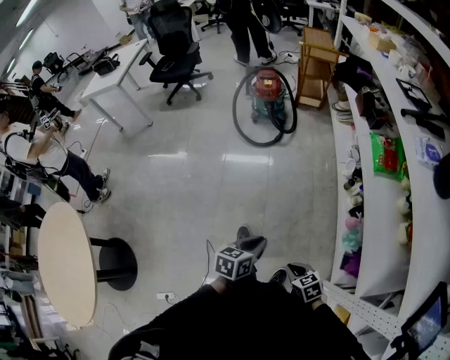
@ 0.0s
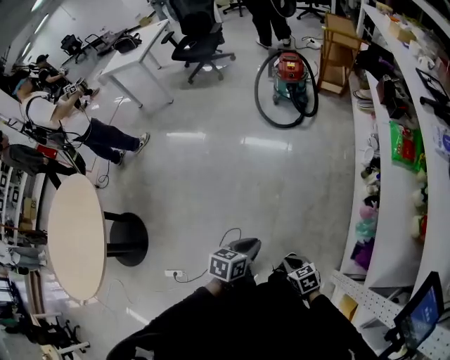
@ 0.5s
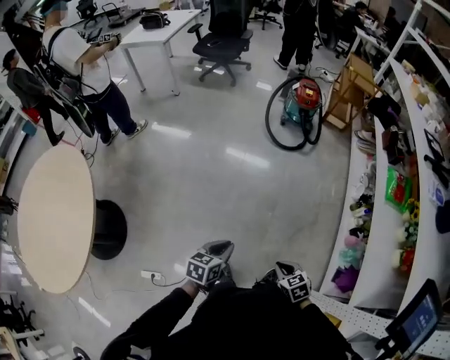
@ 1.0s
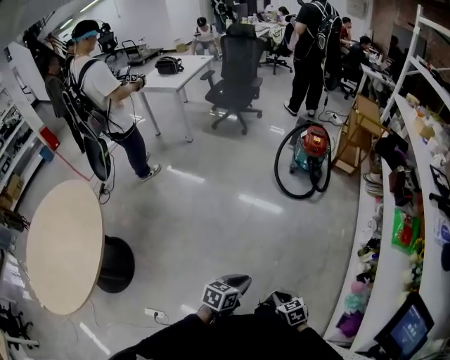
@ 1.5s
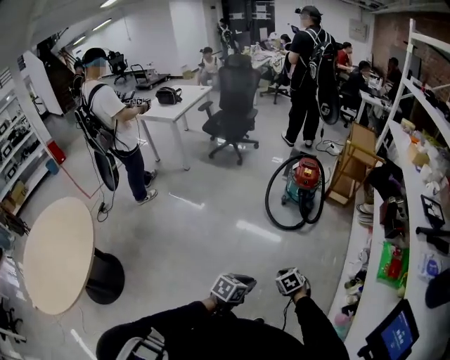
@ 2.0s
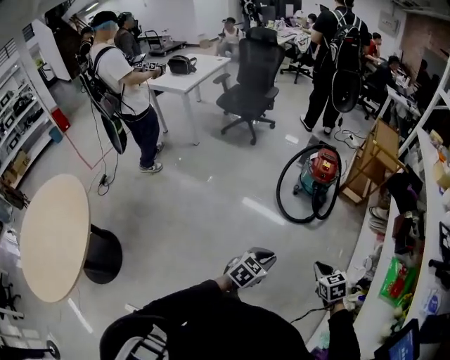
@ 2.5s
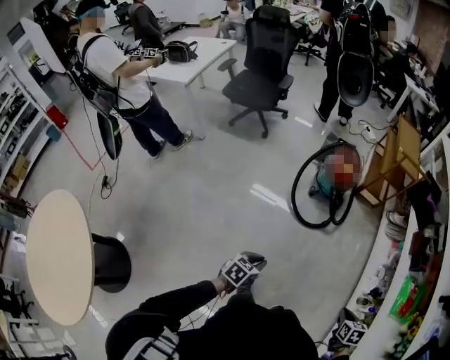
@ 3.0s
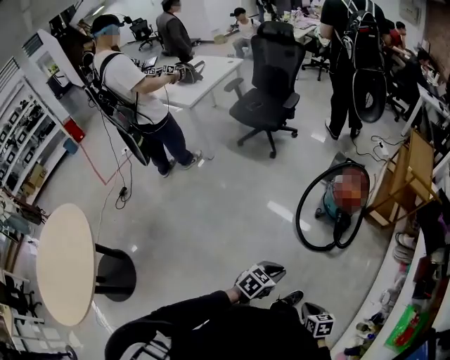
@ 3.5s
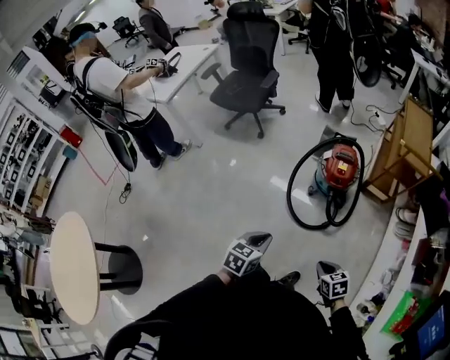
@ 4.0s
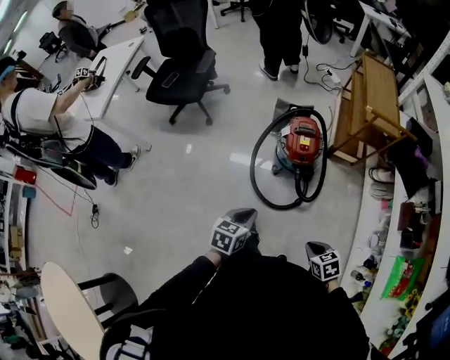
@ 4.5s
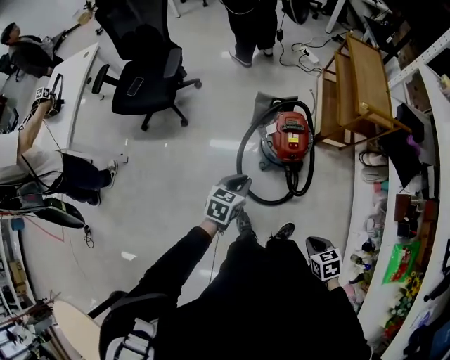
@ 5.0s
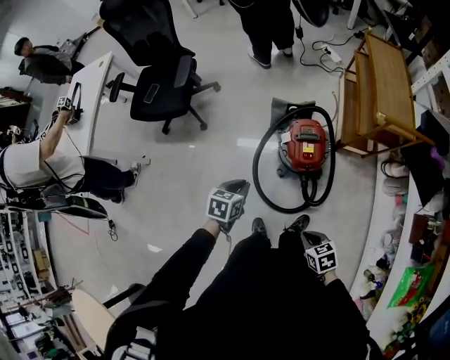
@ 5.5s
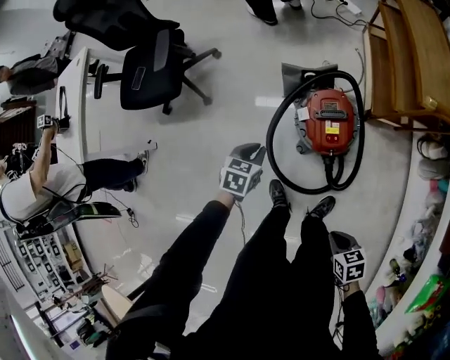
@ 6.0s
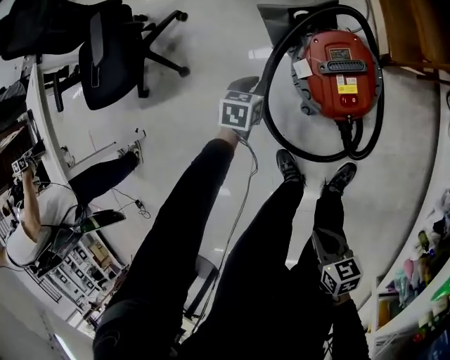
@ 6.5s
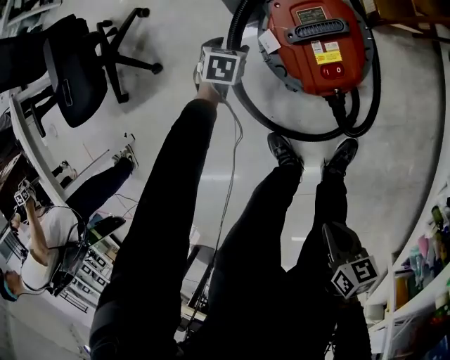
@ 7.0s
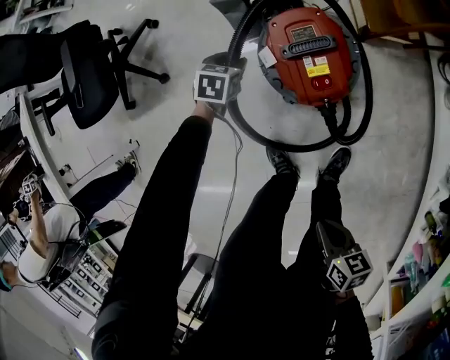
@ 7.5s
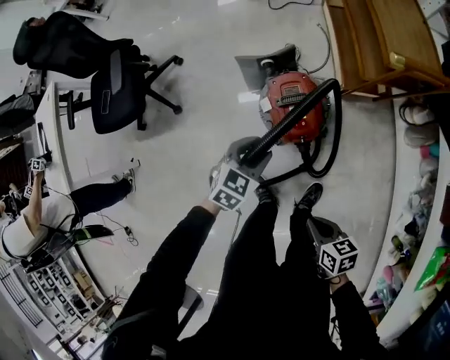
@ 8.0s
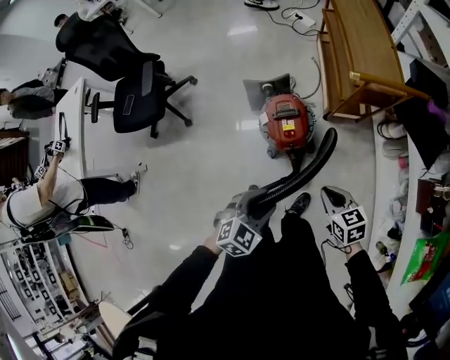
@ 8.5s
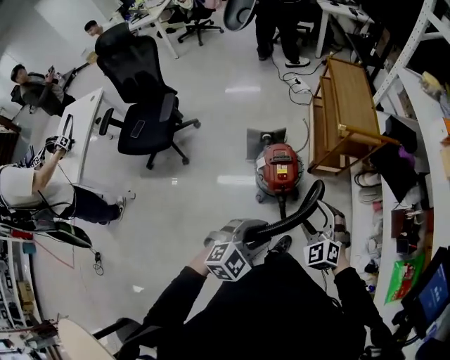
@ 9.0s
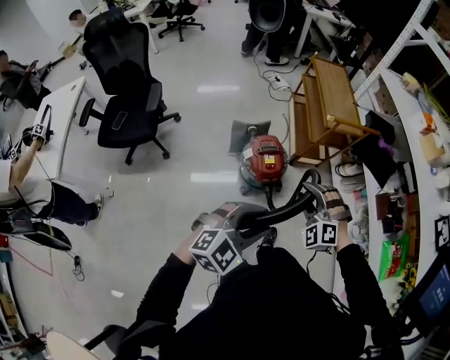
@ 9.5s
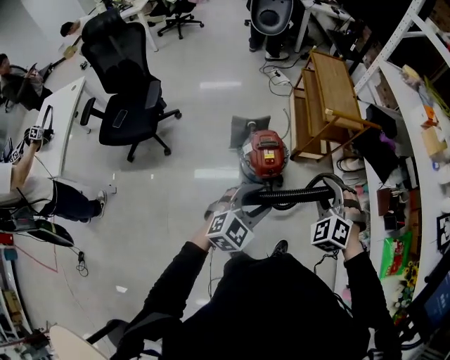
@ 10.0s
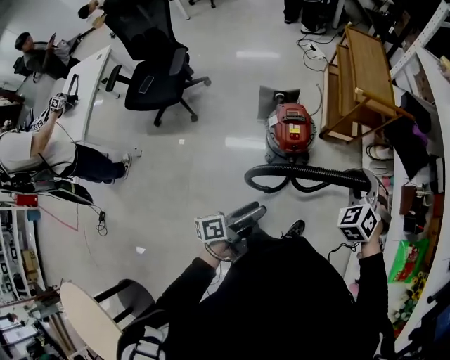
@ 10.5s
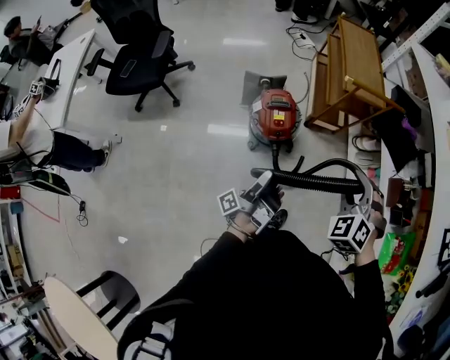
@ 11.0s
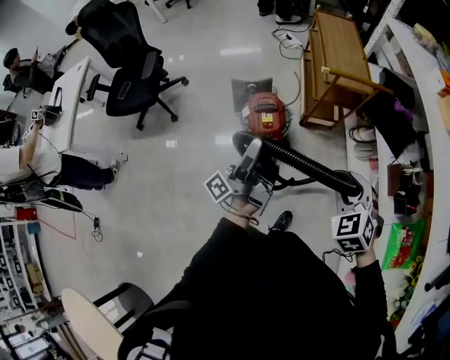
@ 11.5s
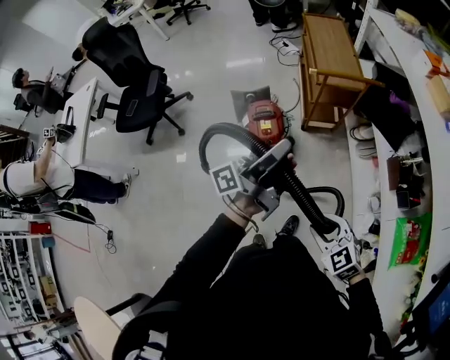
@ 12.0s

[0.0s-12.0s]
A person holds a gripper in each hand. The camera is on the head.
0.0s to 2.0s: The left gripper is displaced forward by approximately 15 cm, and reaches approximately 30 cm to the left, then returns; the right gripper travels forward by some 30 cm, and changes its angle by some 30 degrees.
2.0s to 4.0s: The pair of grippers is taken about 50 cm. The right gripper changes its angle by about 20 degrees.
4.0s to 6.0s: The right gripper heads forward and downward, covering about 35 cm, and changes its angle by roughly 30 degrees, while the left gripper goes some 70 cm forward and downward, and rotates some 20 degrees.
6.0s to 8.0s: The left gripper travels to the right by some 15 cm, moves approximately 35 cm downward and comes back, swivels roughly 30 degrees, and opens up, while the right gripper moves some 10 cm downward and comes back, and turns by approximately 20 degrees.
8.0s to 10.0s: Both grippers move upward, approximately 35 cm. The left gripper swivels about 30 degrees; the right gripper rolls counterclockwise, seen from behind, by approximately 90 degrees, and opens its fingers.
10.0s to 12.0s: The right gripper goes about 25 cm to the right and backward, and changes its angle by about 50 degrees, while the left gripper travels to the right, upward and forward by approximately 25 cm, rotates around the line of its fingers by approximately 90 degrees, counterclockwise from behind, and opens, then closes again.

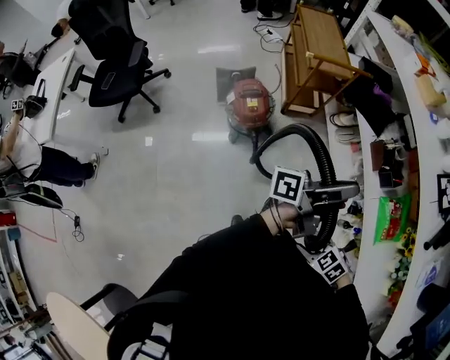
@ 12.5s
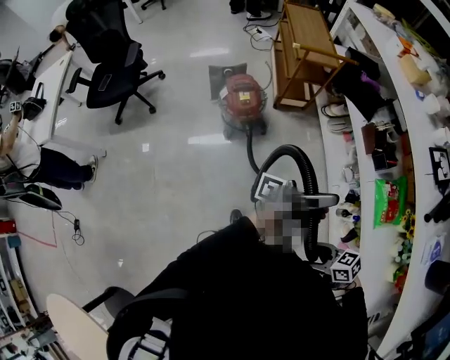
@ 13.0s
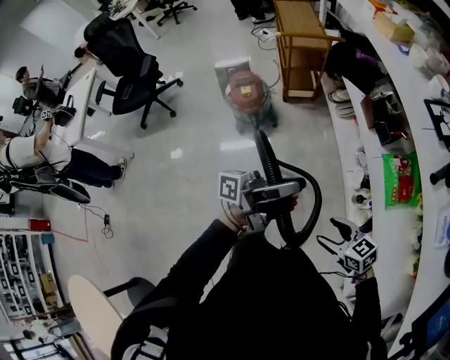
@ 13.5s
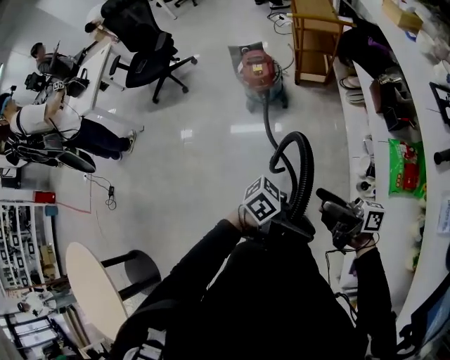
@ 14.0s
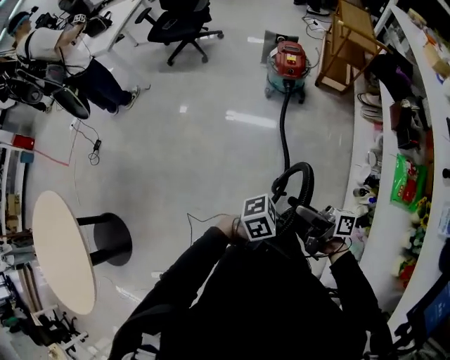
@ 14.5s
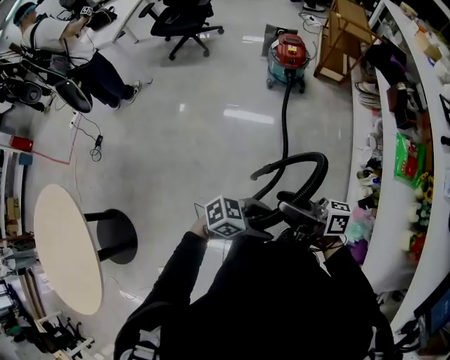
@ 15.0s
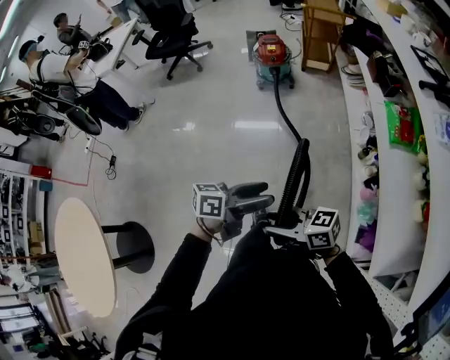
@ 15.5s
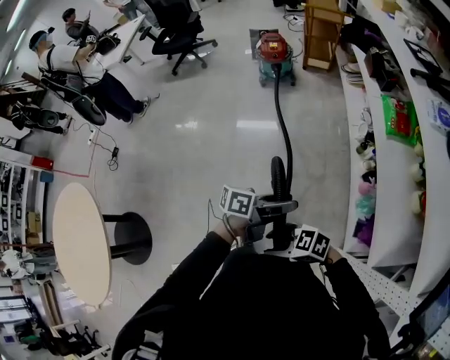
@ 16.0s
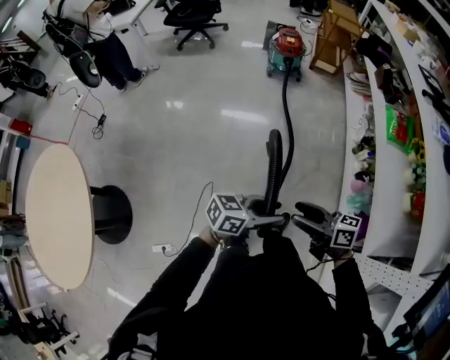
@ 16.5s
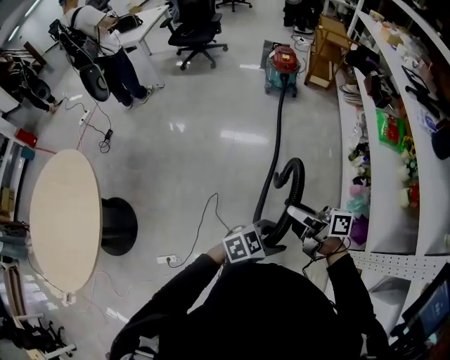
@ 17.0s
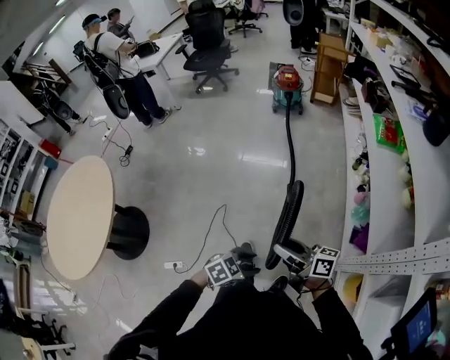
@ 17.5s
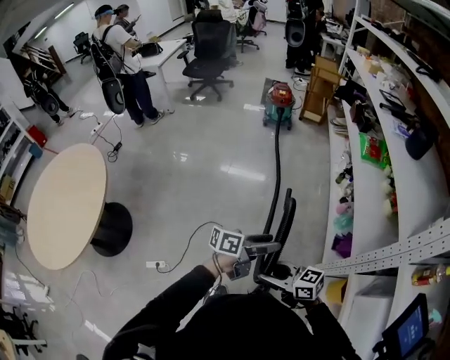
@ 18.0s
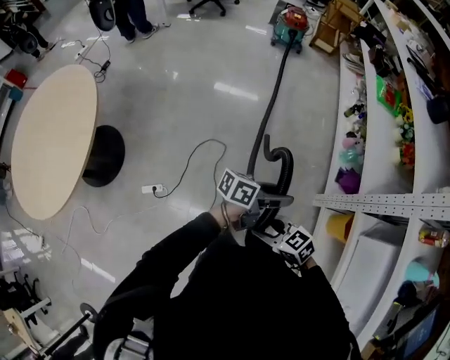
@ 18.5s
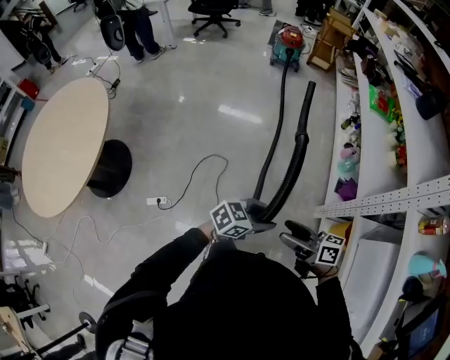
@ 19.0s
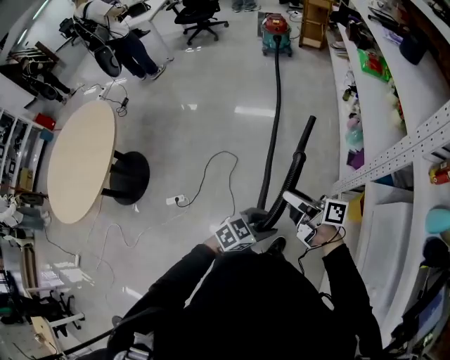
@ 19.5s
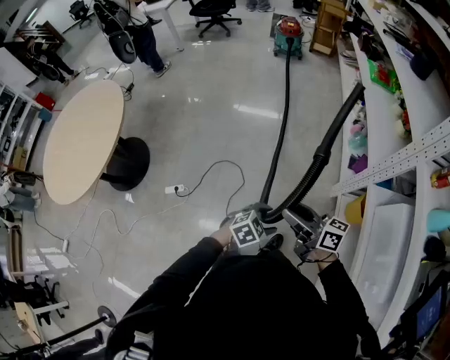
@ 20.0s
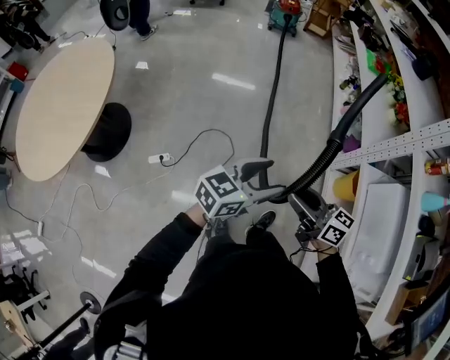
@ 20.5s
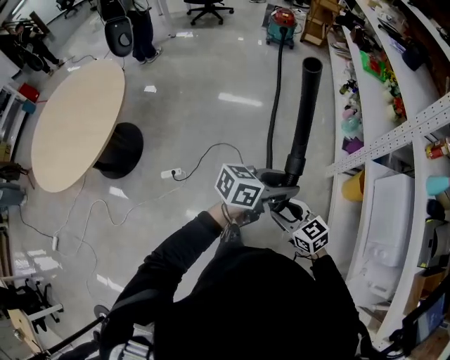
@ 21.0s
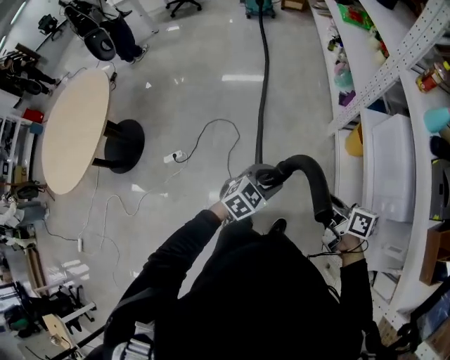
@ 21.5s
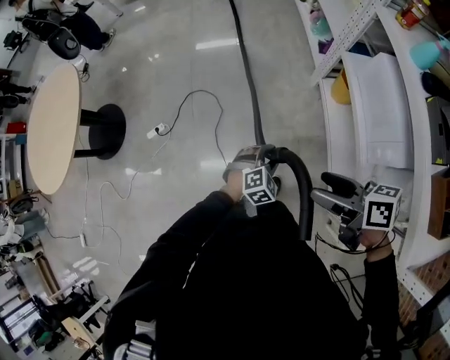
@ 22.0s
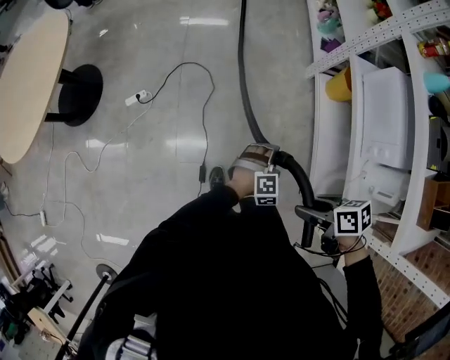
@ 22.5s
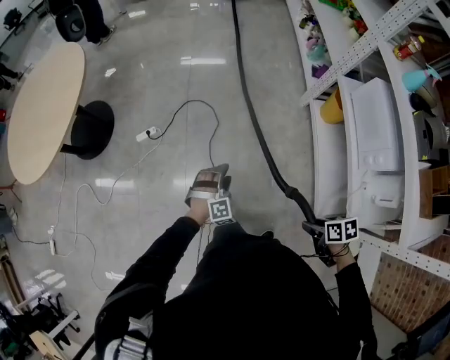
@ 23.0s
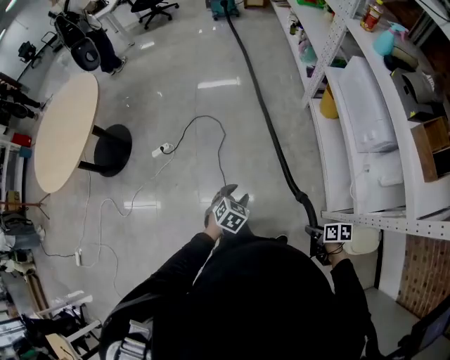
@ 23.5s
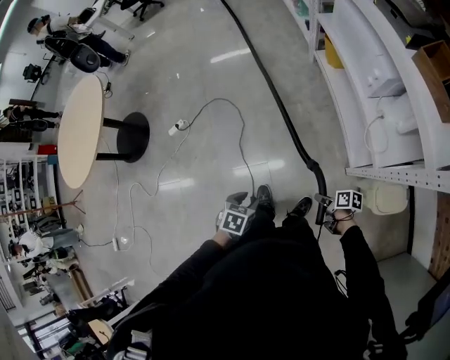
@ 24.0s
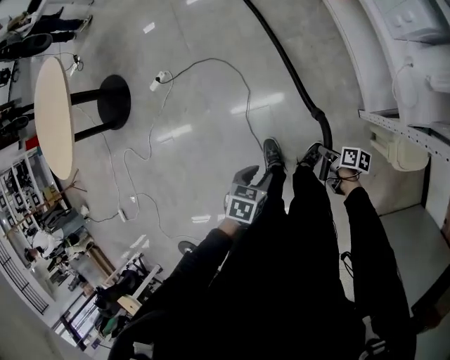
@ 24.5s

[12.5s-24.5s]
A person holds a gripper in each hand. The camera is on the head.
12.5s to 14.5s: The right gripper changes place by approximately 30 cm, tips its fingers upward by about 70 degrees, and opens. Meanwhile the left gripper moves some 70 cm, and angles its fingers downward, by roughly 40 degrees.
14.5s to 16.5s: The right gripper swings up and down, about 10 cm each way, with 2 reversals, and turns by roughly 30 degrees. Meanwhile the left gripper moves roughly 30 cm, and changes its angle by some 50 degrees.
16.5s to 18.5s: The right gripper changes place by about 50 cm, and changes its angle by about 40 degrees. Meanwhile the left gripper moves up and down over roughly 10 cm, changing direction 2 times, and turns by roughly 20 degrees.
18.5s to 20.5s: The right gripper ends up some 20 cm from where it was, changes its angle by about 40 degrees, and opens, then closes again, while the left gripper moves some 30 cm, and turns by some 40 degrees.
20.5s to 22.5s: The right gripper moves up and down over about 10 cm, changing direction 2 times, and points its fingers about 40 degrees further downward, while the left gripper ends up approximately 50 cm from where it was, and tips its fingers downward by approximately 40 degrees.
22.5s to 24.5s: The left gripper moves approximately 35 cm, and rotates around the line of its fingers by some 60 degrees, counterclockwise from behind, while the right gripper goes approximately 35 cm downward, and turns by approximately 40 degrees.

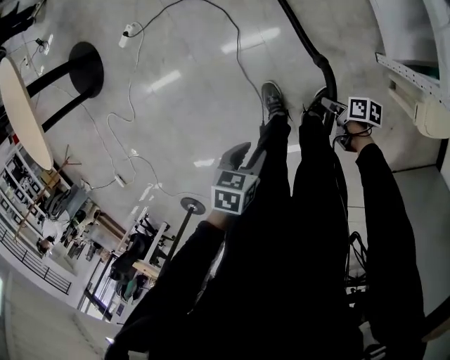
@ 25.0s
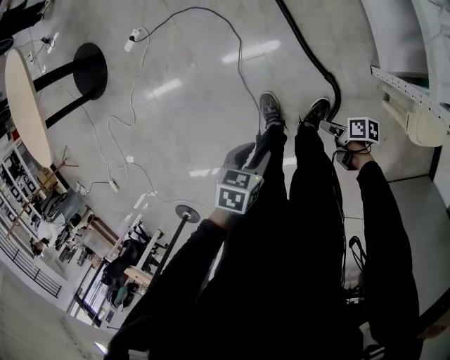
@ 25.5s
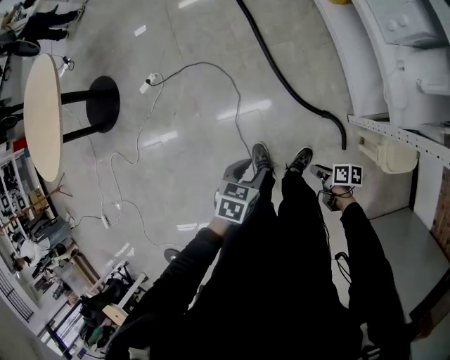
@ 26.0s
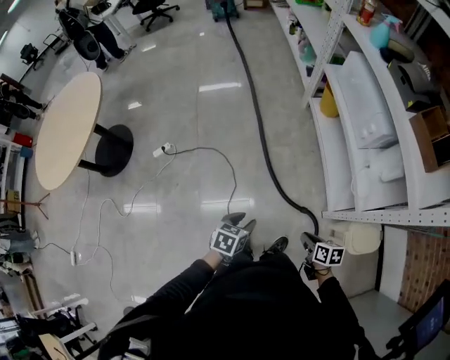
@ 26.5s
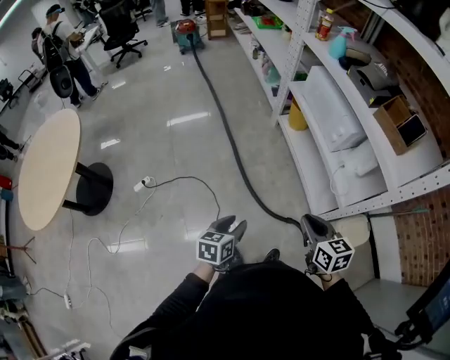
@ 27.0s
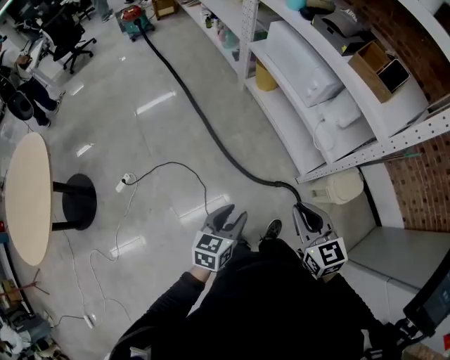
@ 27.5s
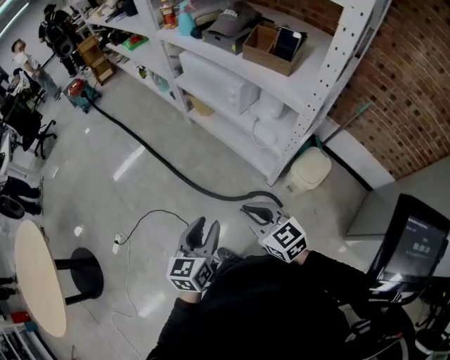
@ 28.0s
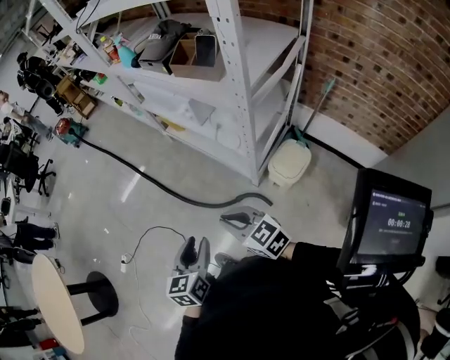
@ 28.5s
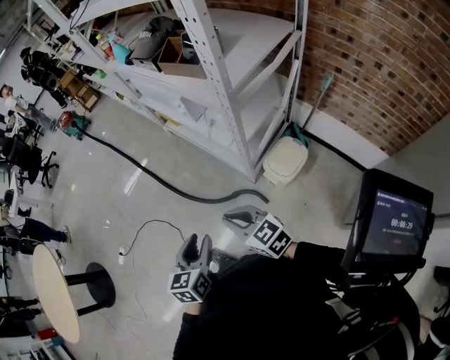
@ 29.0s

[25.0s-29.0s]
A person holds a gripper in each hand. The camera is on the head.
25.0s to 27.0s: The right gripper moves upward, about 60 cm, and turns by about 70 degrees; the left gripper heads upward, covering roughly 30 cm, and points its fingers roughly 30 degrees further upward.
27.0s to 29.0s: The left gripper shifts some 35 cm to the right, and swivels about 20 degrees, while the right gripper heads to the right and backward, covering some 25 cm.
